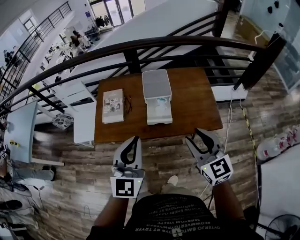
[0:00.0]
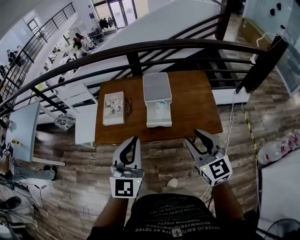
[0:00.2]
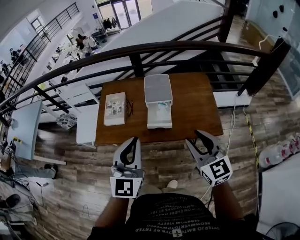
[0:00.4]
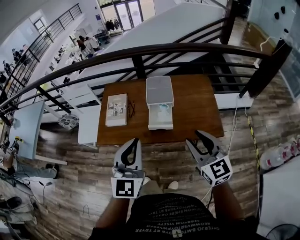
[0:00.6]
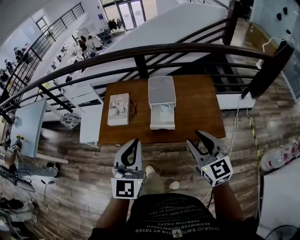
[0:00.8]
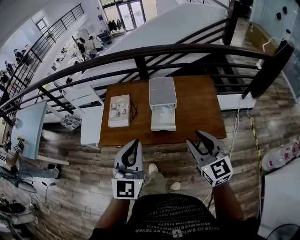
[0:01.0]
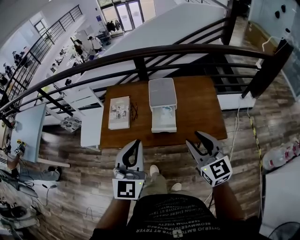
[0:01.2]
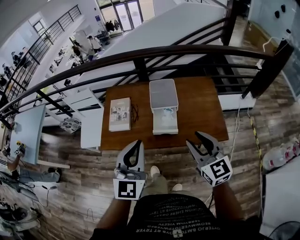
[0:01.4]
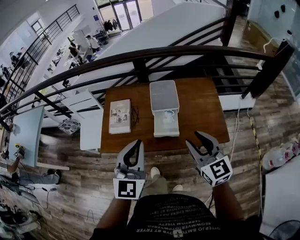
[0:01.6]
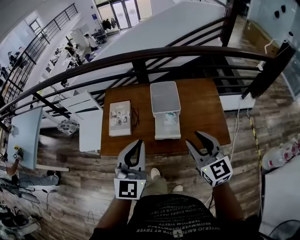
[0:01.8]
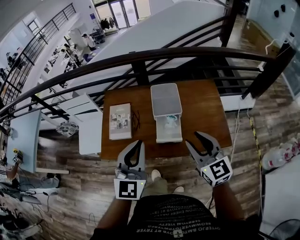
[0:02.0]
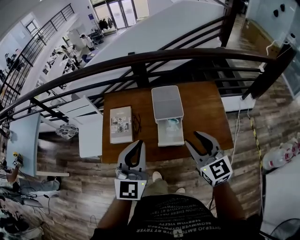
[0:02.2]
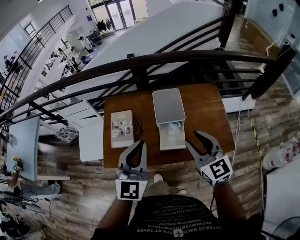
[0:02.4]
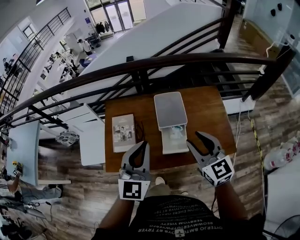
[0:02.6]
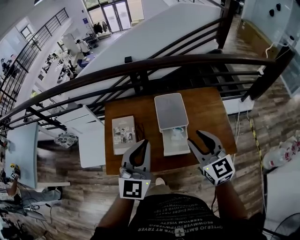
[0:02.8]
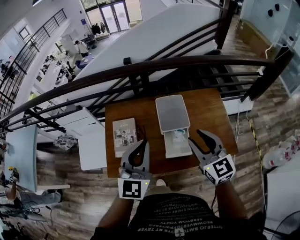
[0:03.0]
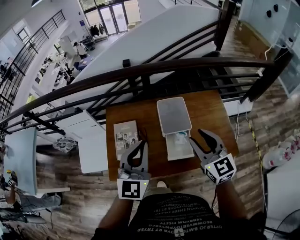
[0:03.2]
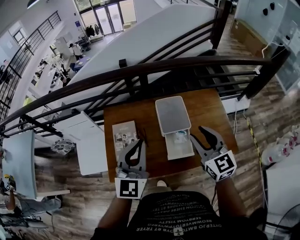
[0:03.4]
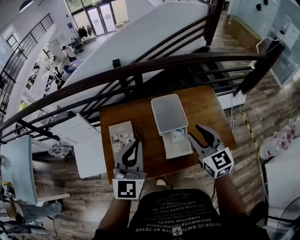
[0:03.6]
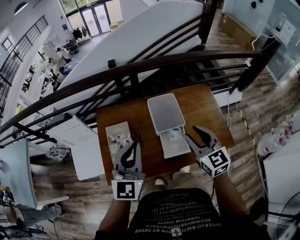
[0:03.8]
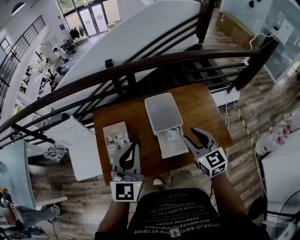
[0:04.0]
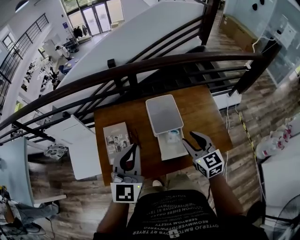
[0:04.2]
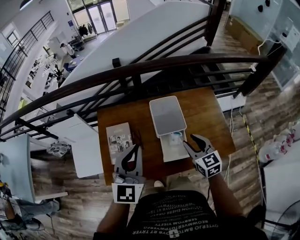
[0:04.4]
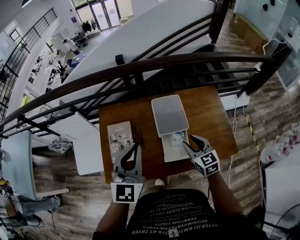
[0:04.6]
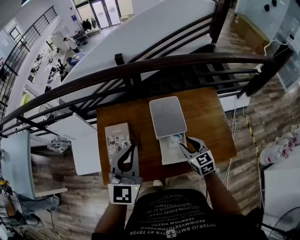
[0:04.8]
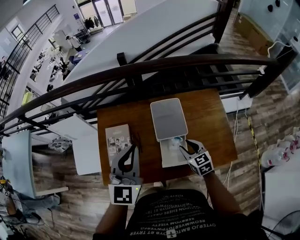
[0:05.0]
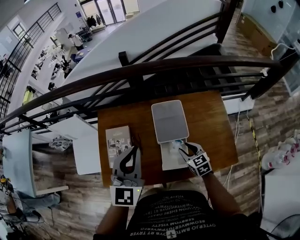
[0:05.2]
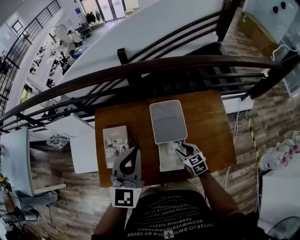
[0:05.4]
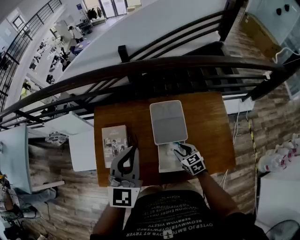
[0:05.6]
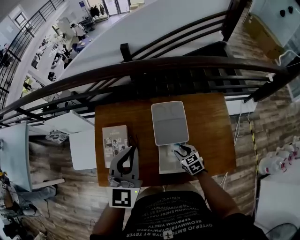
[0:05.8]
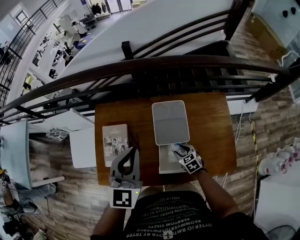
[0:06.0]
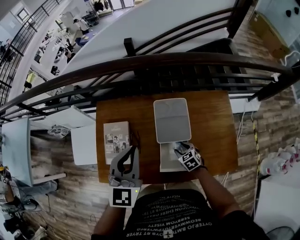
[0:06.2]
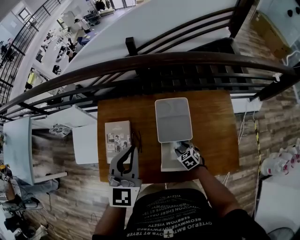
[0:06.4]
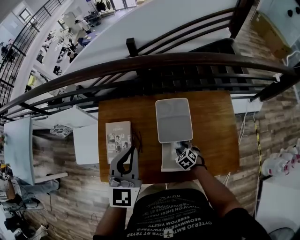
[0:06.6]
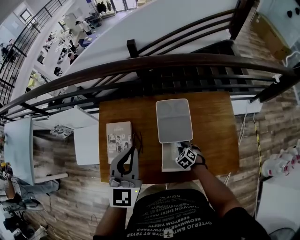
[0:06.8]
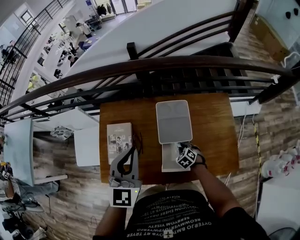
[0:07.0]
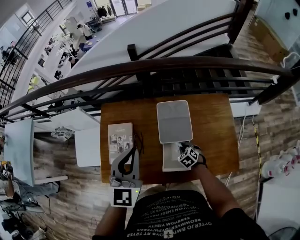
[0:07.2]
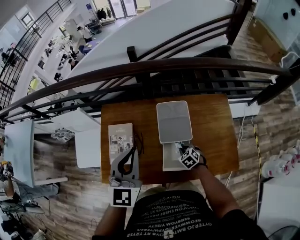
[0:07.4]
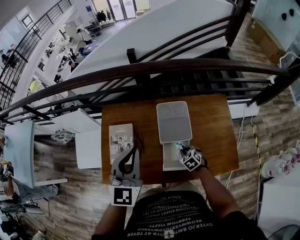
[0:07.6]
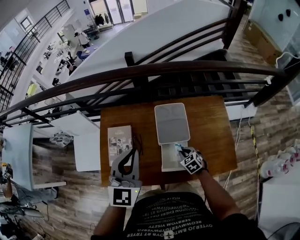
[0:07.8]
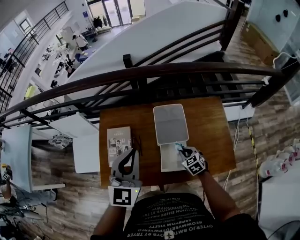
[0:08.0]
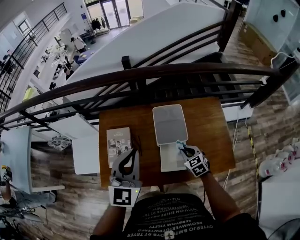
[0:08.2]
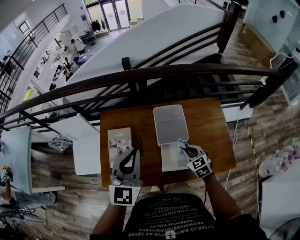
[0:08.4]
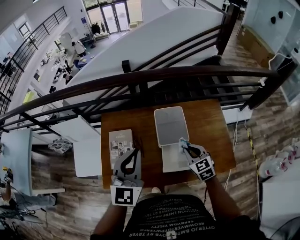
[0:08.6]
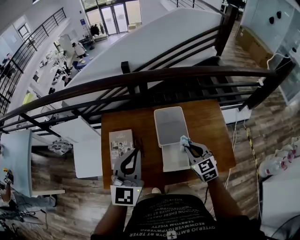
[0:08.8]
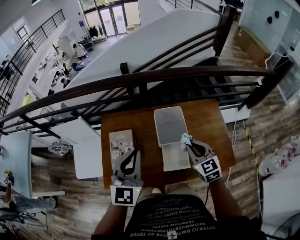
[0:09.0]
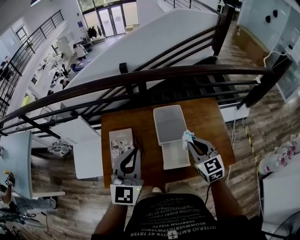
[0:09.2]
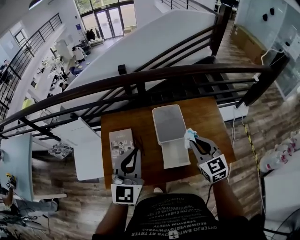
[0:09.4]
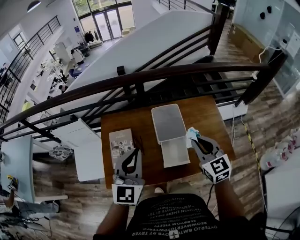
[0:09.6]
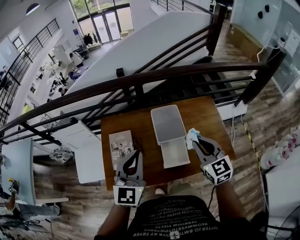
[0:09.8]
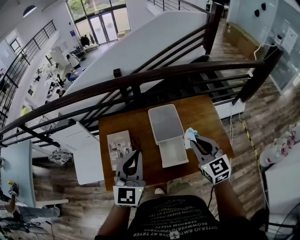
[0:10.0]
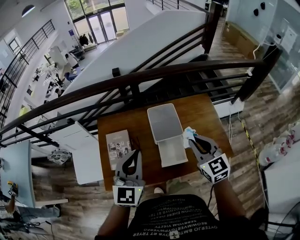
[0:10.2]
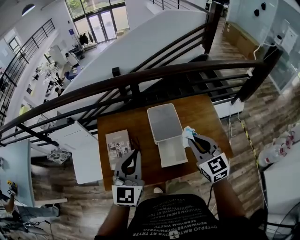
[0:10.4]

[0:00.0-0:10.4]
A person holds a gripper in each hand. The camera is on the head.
0.0 to 1.4 s: The right gripper is displaced forward by some 5 cm.
1.4 to 3.0 s: The left gripper heads forward, covering about 25 cm, while the right gripper shifts roughly 25 cm forward and to the left.
3.0 to 4.4 s: The left gripper shifts by roughly 5 cm. Meanwhile the right gripper shifts some 15 cm downward.
4.4 to 6.0 s: The left gripper goes about 10 cm forward; the right gripper heads downward, covering roughly 25 cm, and rotates approximately 30 degrees.
6.0 to 7.4 s: The right gripper closes up.
7.4 to 9.0 s: The right gripper goes about 30 cm upward, and tilts its fingers approximately 40 degrees upward; the left gripper goes roughly 5 cm backward.
9.0 to 10.4 s: The right gripper travels upward by some 10 cm.

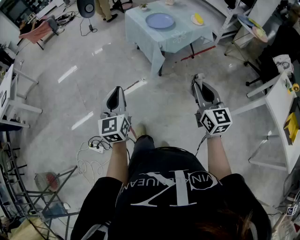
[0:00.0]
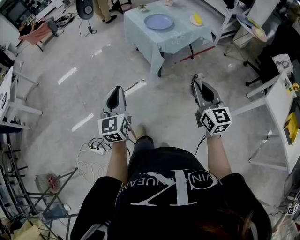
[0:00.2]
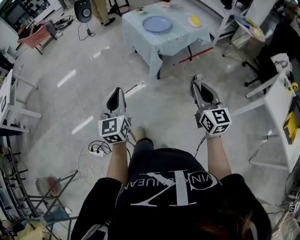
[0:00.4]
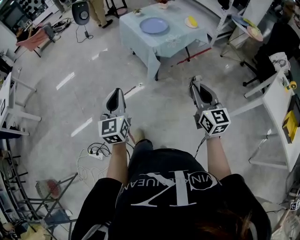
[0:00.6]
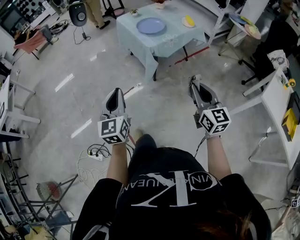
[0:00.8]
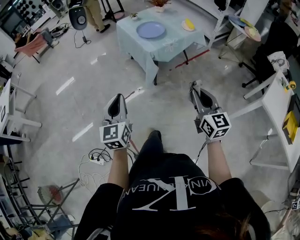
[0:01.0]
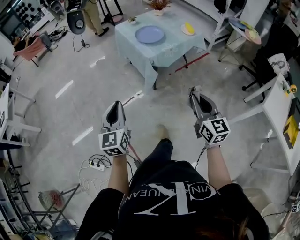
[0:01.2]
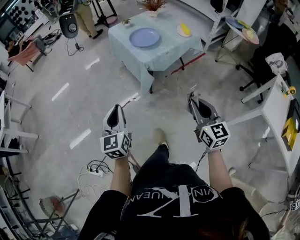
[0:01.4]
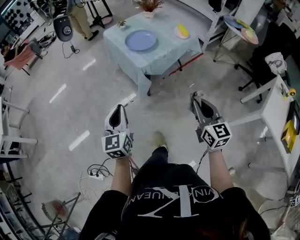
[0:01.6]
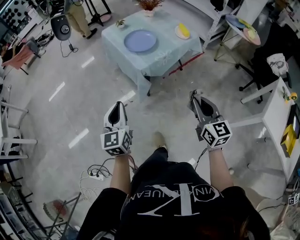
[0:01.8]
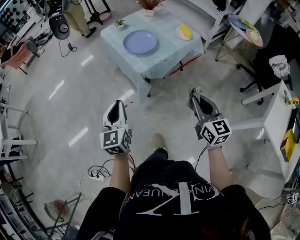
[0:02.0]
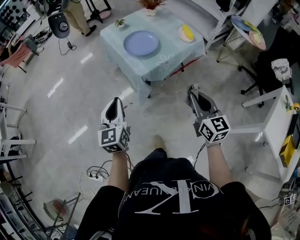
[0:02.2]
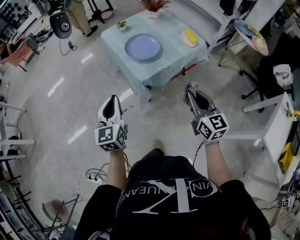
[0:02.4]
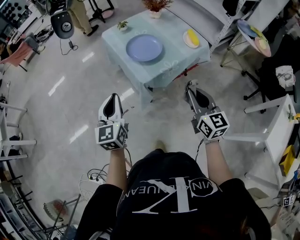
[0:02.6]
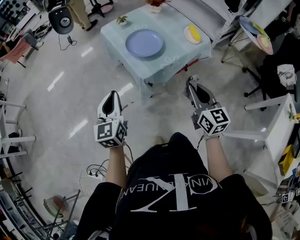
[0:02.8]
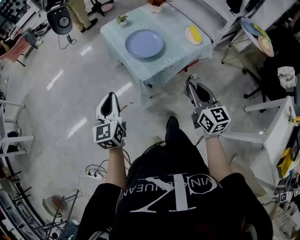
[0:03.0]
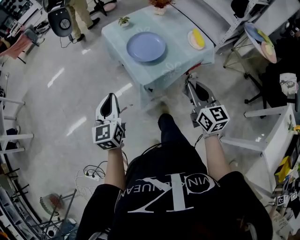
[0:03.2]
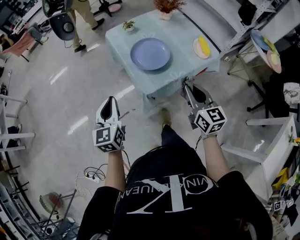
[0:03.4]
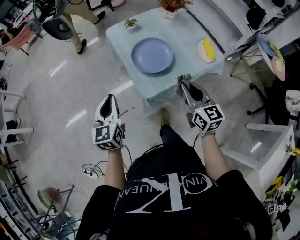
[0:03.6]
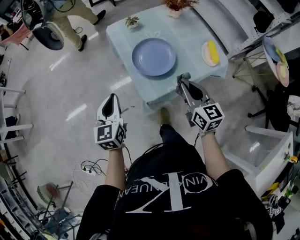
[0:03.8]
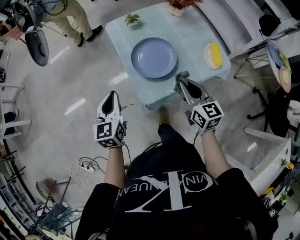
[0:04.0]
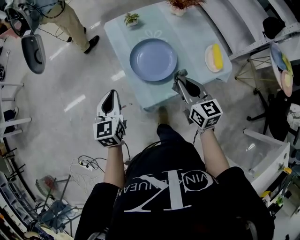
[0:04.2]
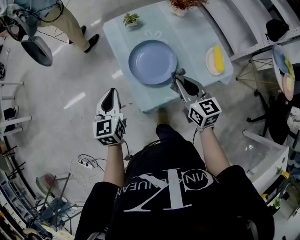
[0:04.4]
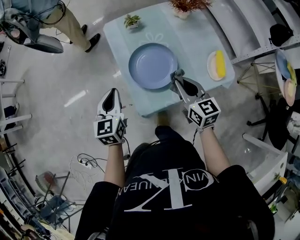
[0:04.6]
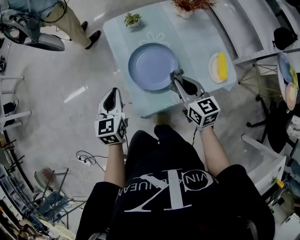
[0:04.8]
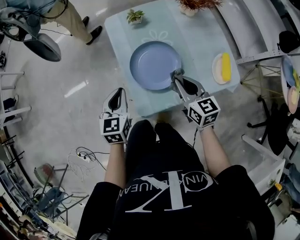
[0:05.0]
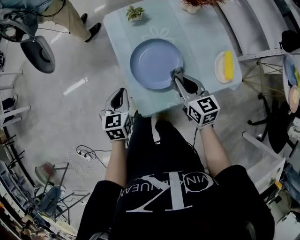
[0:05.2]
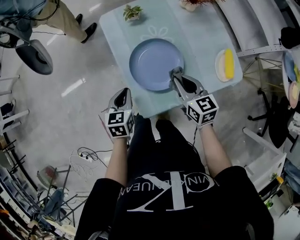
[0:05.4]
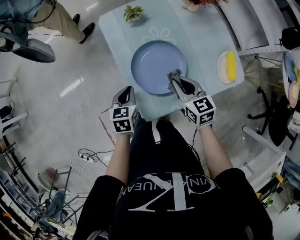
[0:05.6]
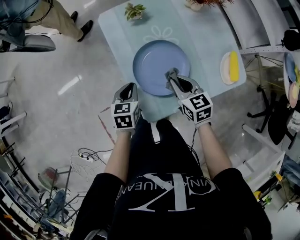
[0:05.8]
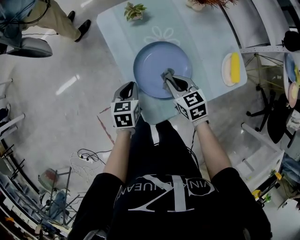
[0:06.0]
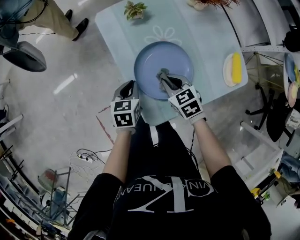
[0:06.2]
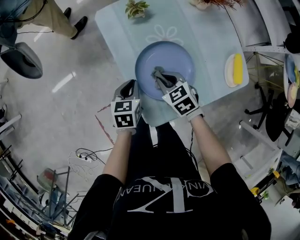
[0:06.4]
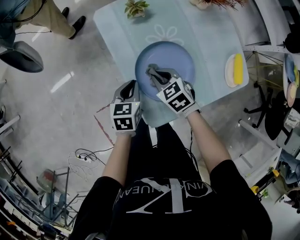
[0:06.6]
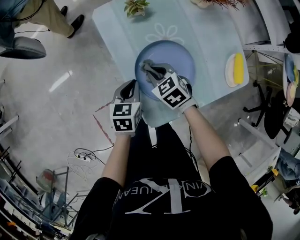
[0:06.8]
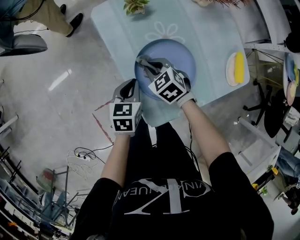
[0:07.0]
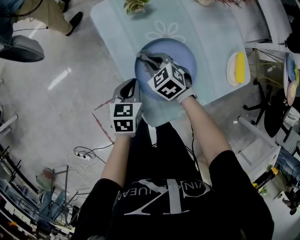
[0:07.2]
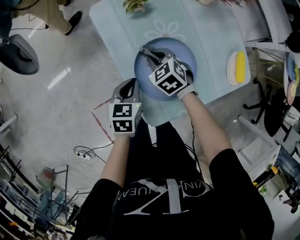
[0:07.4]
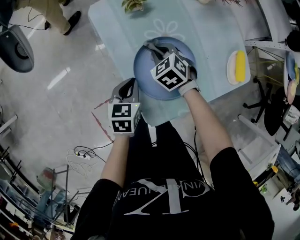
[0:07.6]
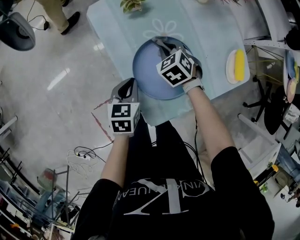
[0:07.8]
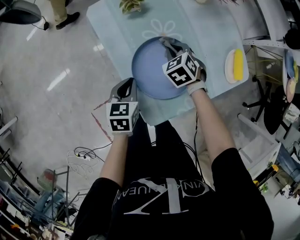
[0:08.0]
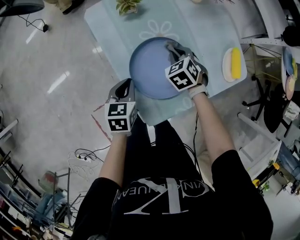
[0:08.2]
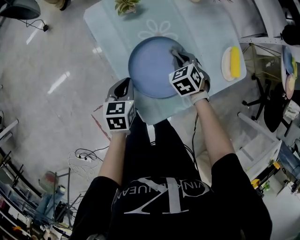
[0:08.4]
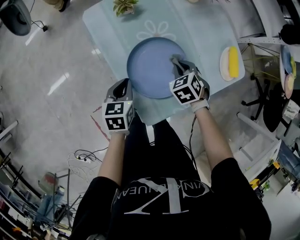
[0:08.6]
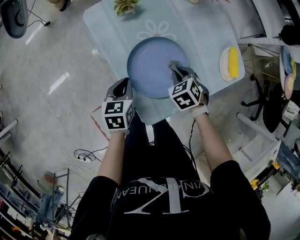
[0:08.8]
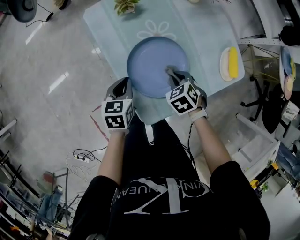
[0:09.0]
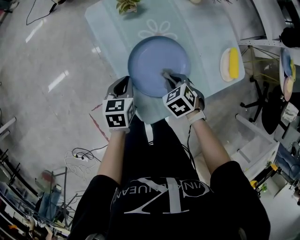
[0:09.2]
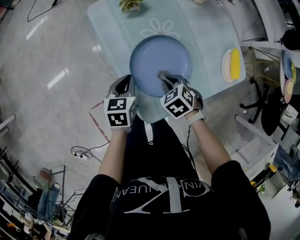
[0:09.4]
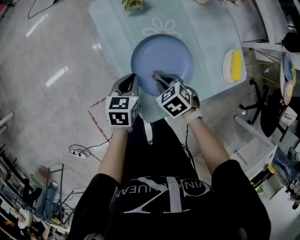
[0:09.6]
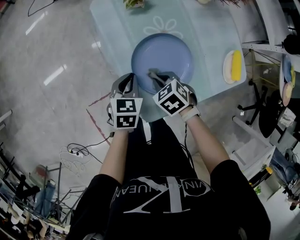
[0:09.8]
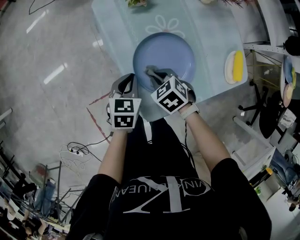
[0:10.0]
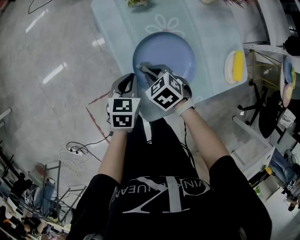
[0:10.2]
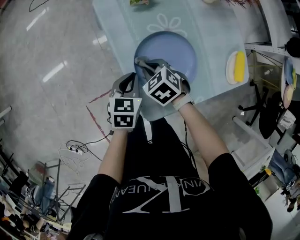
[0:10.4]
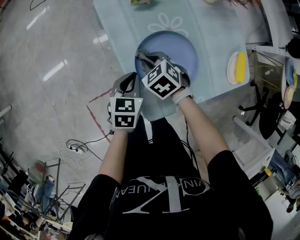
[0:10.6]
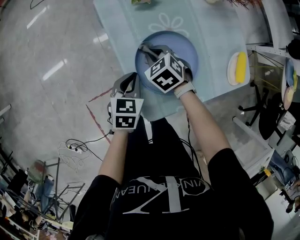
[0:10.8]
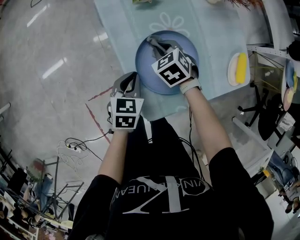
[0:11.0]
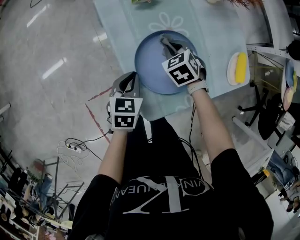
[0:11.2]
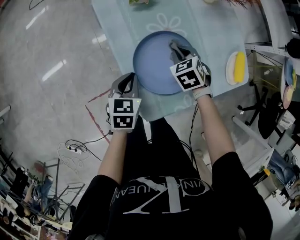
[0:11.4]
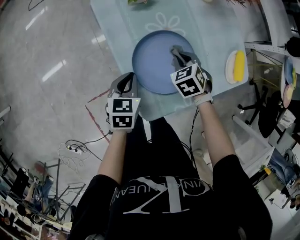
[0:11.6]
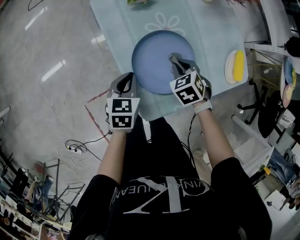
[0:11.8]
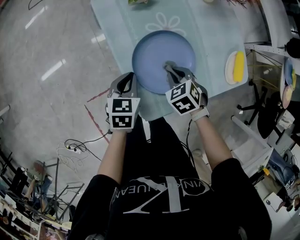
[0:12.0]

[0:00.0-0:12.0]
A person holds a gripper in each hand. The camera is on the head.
0.0 to 1.6 s: The two grippers go some 20 cm forward and to the right.
1.6 to 3.0 s: The two grippers go about 25 cm forward.
3.0 to 4.4 s: Both grippers travel together forward, about 30 cm. The right gripper rotates some 20 degrees.
4.4 to 6.0 s: The grippers both shift downward and forward by roughly 20 cm. The left gripper rotates some 30 degrees; the right gripper changes its angle by roughly 30 degrees.
6.0 to 7.6 s: The right gripper travels forward and downward by roughly 15 cm, and turns by about 30 degrees.
7.6 to 9.0 s: The right gripper shifts about 15 cm to the right and backward.
9.0 to 10.4 s: The right gripper moves to the left, some 15 cm.
10.4 to 12.0 s: The right gripper is displaced to the right by some 10 cm.

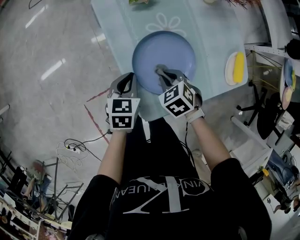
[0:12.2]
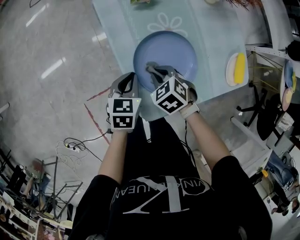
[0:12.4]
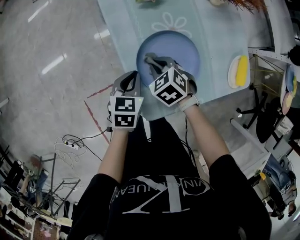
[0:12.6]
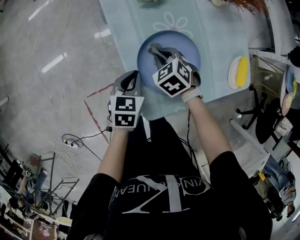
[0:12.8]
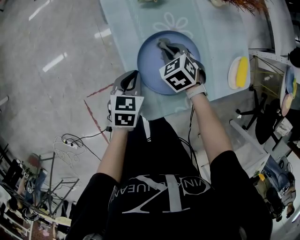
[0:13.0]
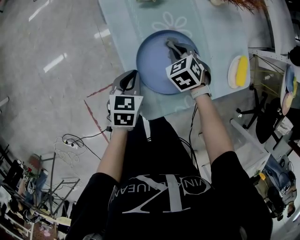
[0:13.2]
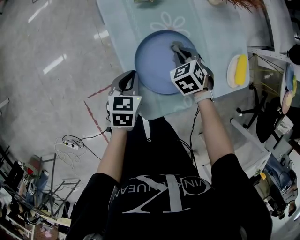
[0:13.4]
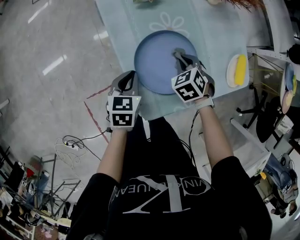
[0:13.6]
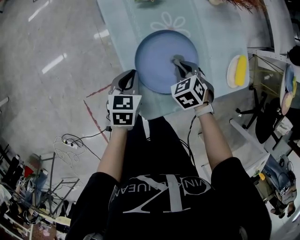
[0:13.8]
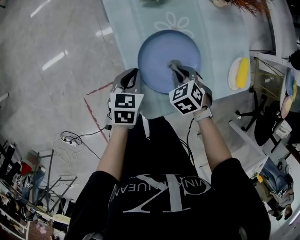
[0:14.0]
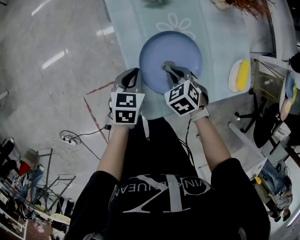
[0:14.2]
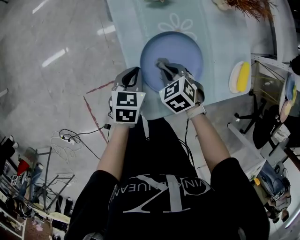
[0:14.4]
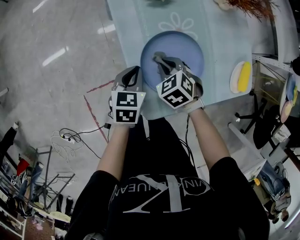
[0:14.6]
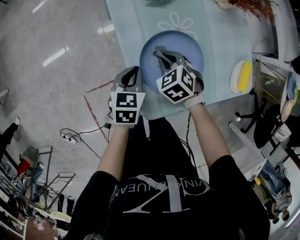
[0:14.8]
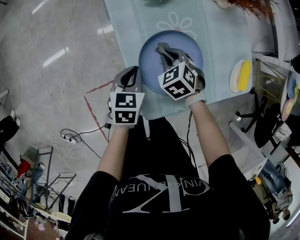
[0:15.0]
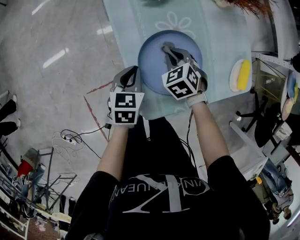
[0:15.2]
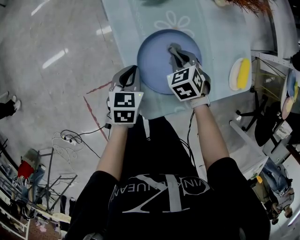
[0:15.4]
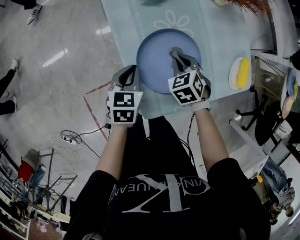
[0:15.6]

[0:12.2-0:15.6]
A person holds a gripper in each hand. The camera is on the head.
12.2 to 13.8 s: The right gripper is displaced to the right by some 5 cm.
13.8 to 15.6 s: The right gripper moves roughly 10 cm to the left and comes back.
